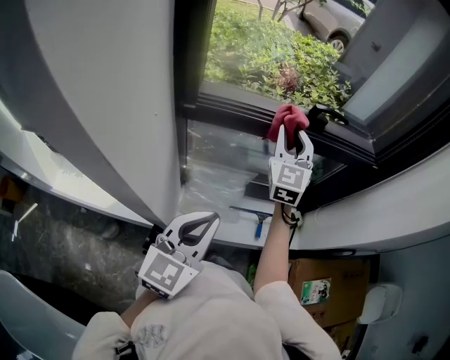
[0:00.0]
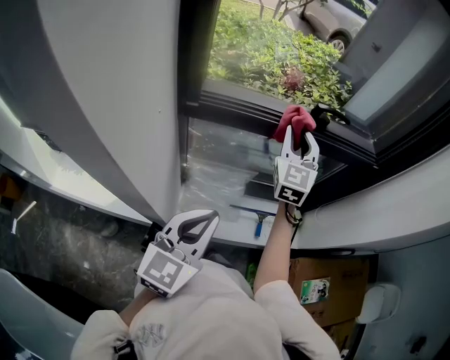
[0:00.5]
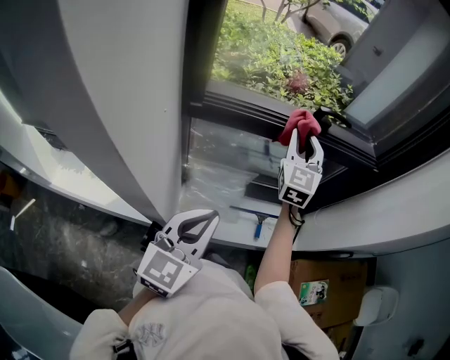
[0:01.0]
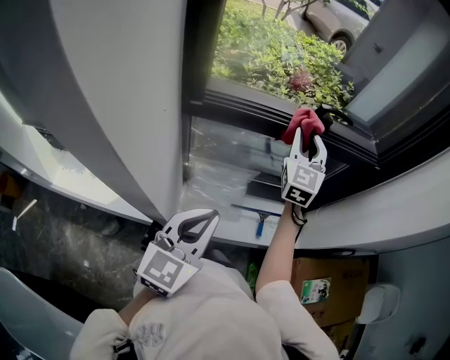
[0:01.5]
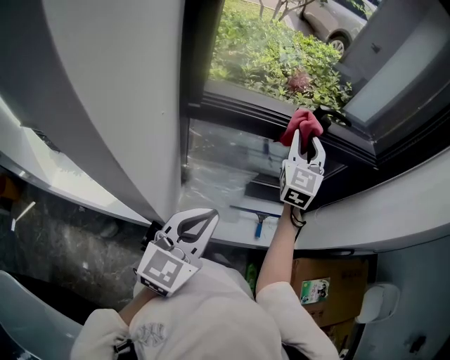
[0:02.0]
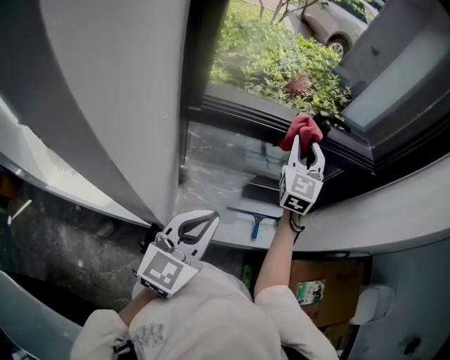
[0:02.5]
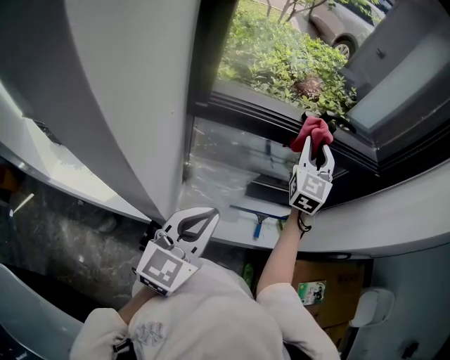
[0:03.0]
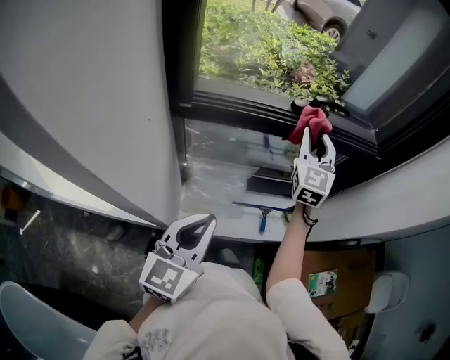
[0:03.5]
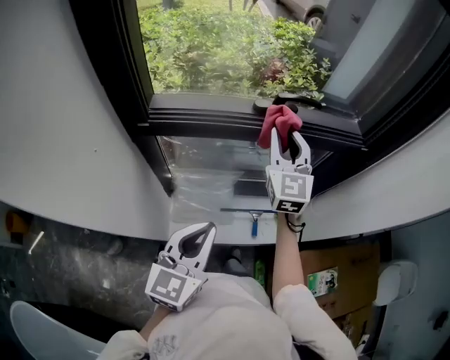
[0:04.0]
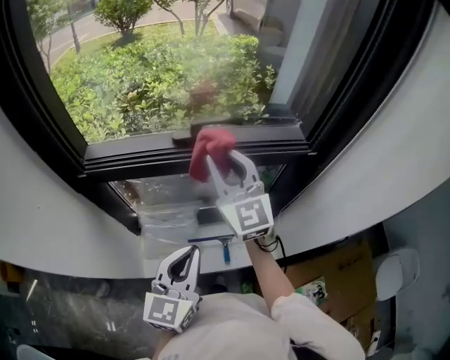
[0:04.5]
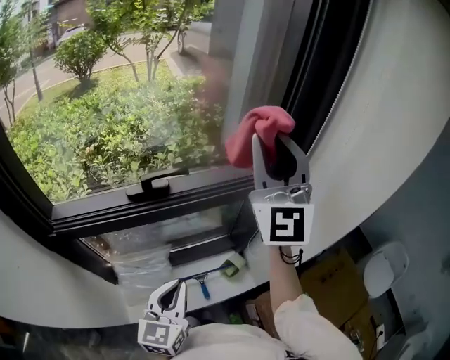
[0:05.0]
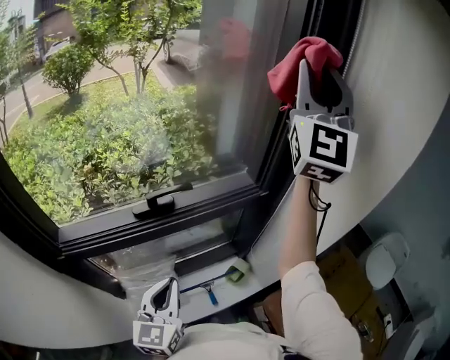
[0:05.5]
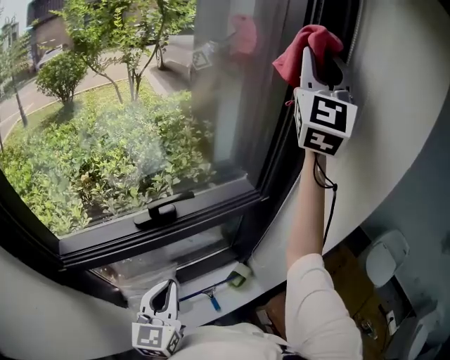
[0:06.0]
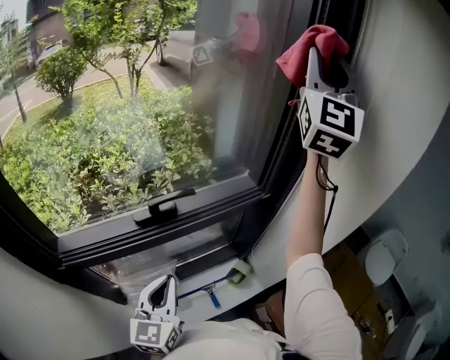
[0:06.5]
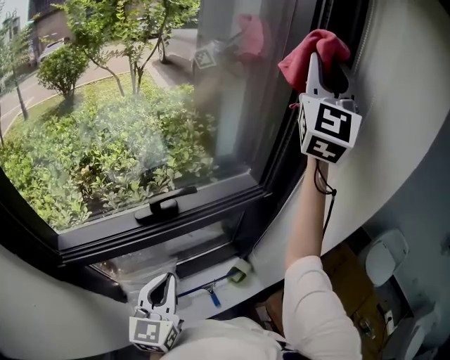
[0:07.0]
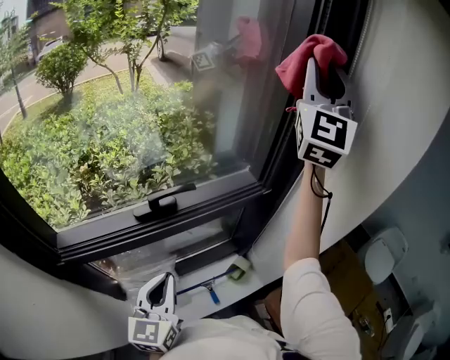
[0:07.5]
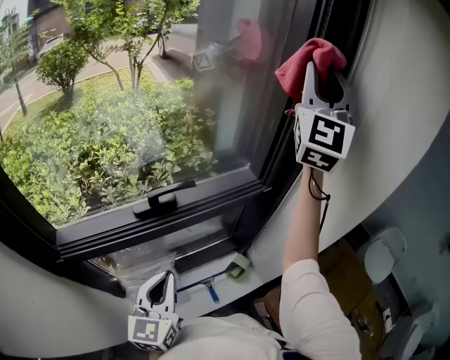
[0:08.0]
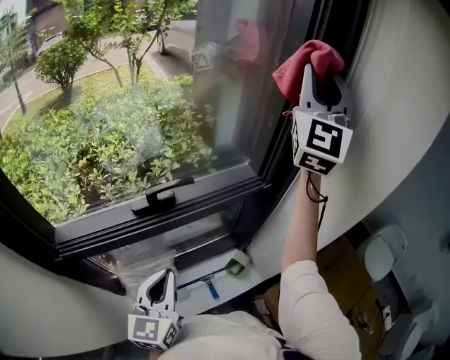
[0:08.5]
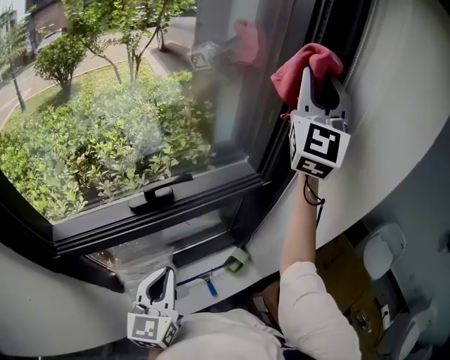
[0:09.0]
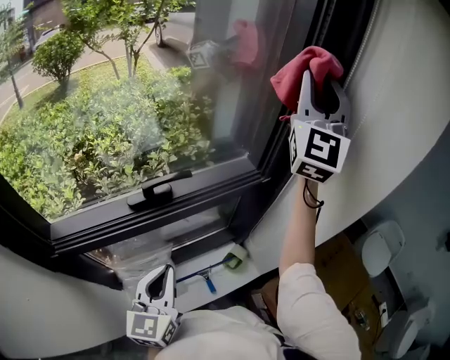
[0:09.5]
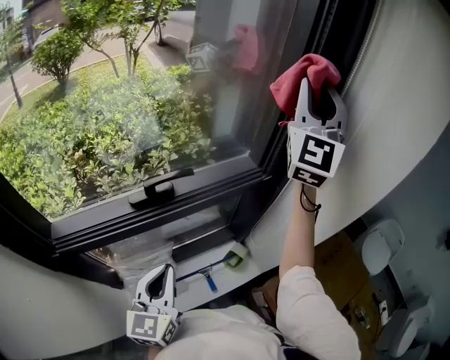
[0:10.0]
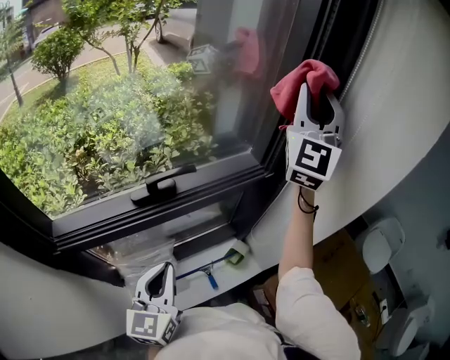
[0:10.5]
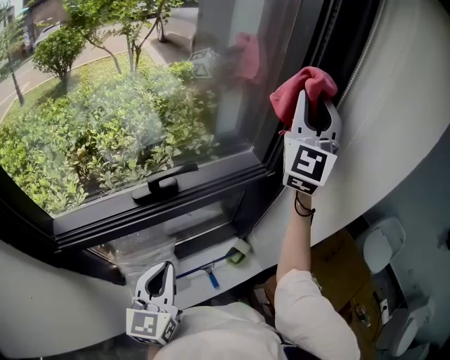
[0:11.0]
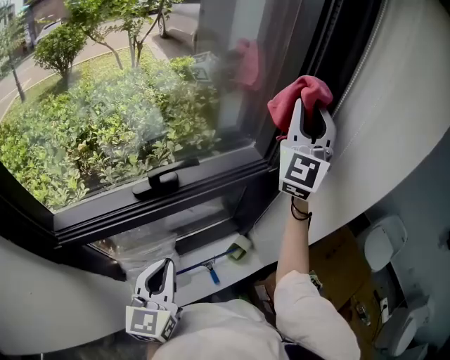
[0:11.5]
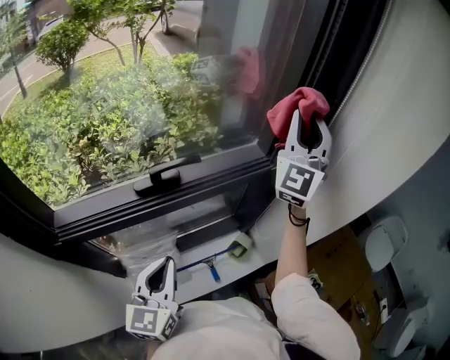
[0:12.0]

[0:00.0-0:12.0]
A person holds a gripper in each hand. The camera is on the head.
0:00.0 to 0:02.0: The grippers make only small movements.
0:02.0 to 0:04.0: The left gripper is displaced to the right by some 5 cm.
0:04.0 to 0:06.0: The left gripper shifts by about 15 cm. Meanwhile the right gripper heads upward, covering approximately 40 cm, and angles its fingers upward, by approximately 40 degrees.
0:06.0 to 0:08.0: The right gripper is displaced downward by roughly 5 cm.
0:08.0 to 0:10.0: The right gripper heads downward, covering some 5 cm.
0:10.0 to 0:12.0: The right gripper shifts approximately 10 cm downward.

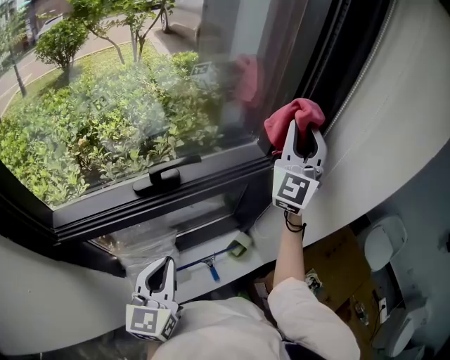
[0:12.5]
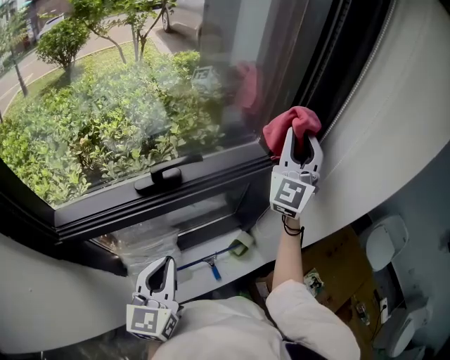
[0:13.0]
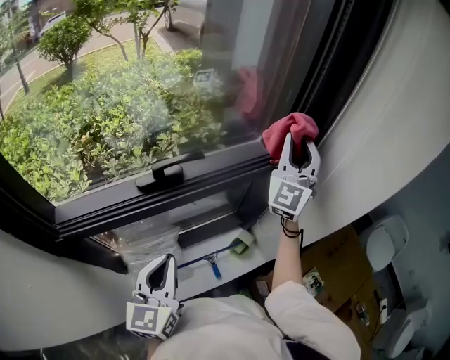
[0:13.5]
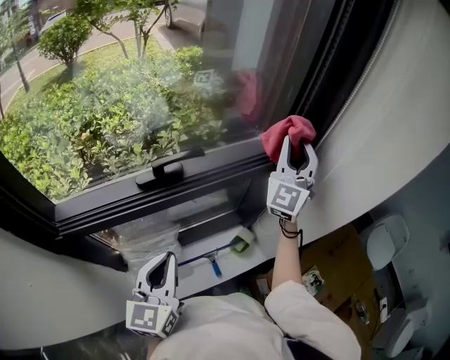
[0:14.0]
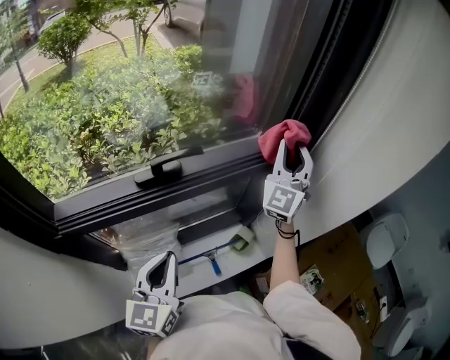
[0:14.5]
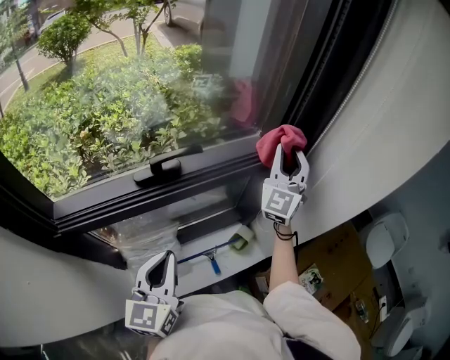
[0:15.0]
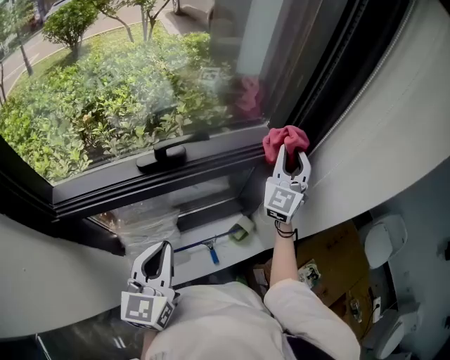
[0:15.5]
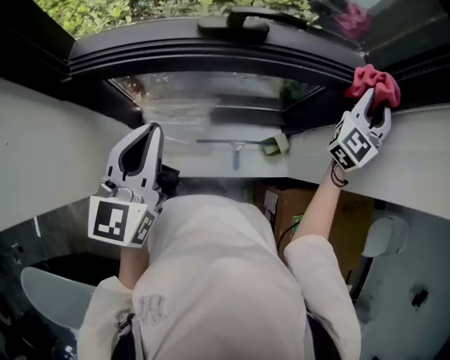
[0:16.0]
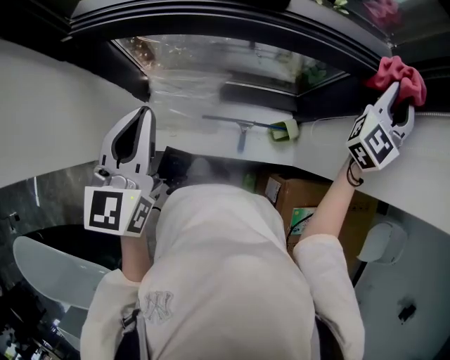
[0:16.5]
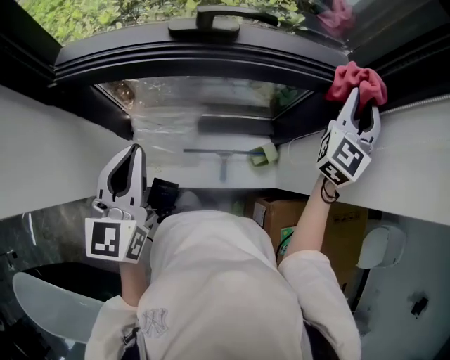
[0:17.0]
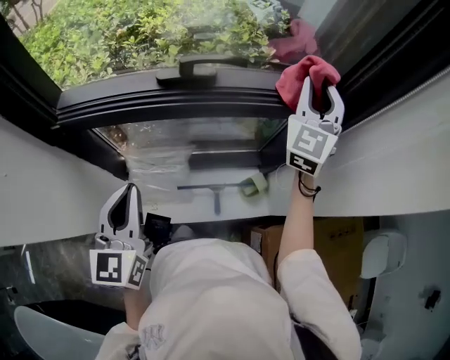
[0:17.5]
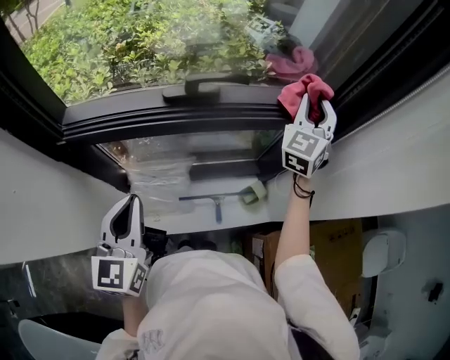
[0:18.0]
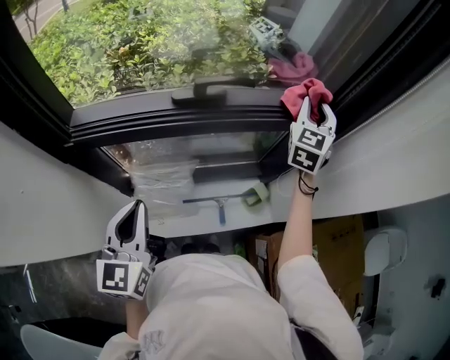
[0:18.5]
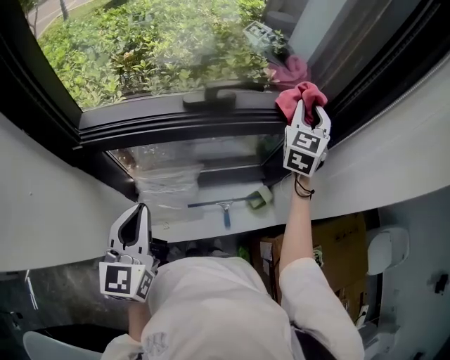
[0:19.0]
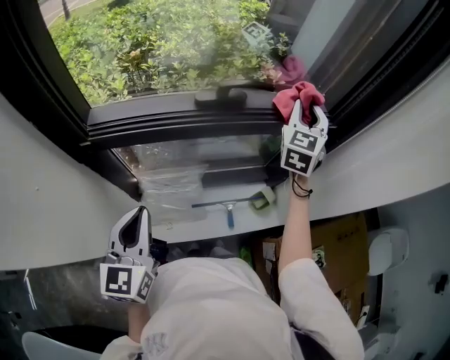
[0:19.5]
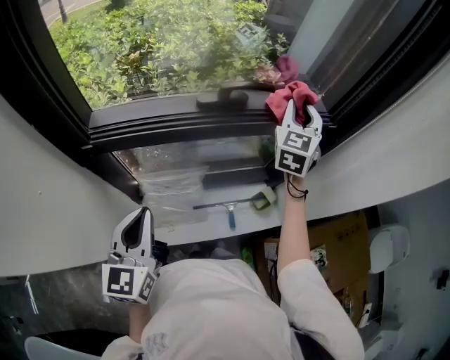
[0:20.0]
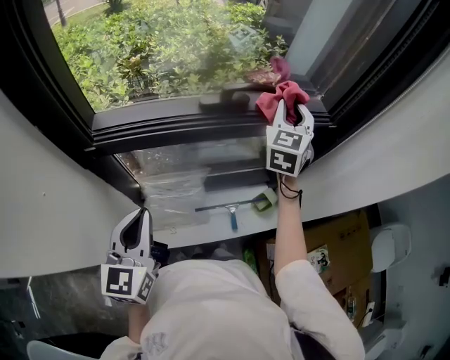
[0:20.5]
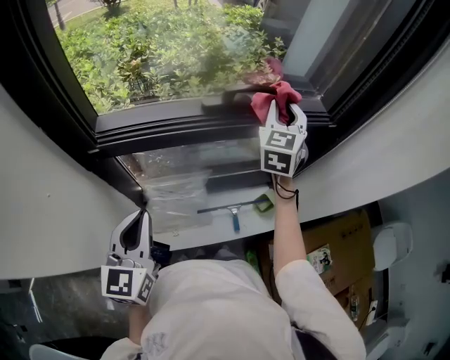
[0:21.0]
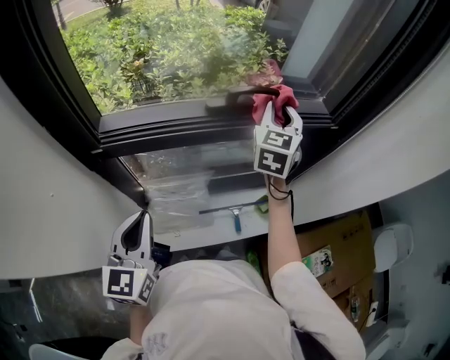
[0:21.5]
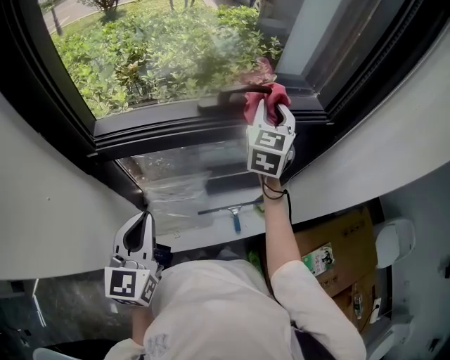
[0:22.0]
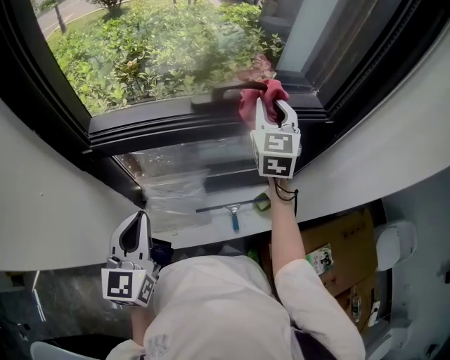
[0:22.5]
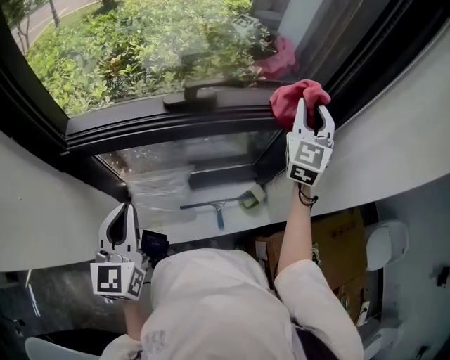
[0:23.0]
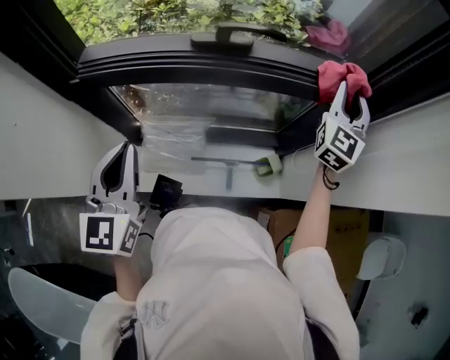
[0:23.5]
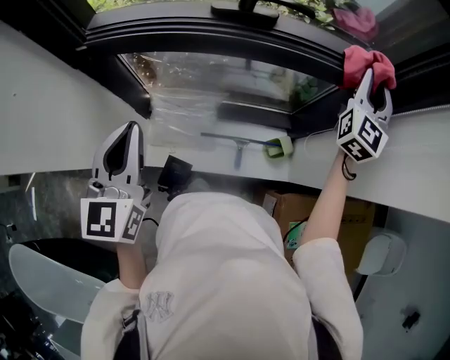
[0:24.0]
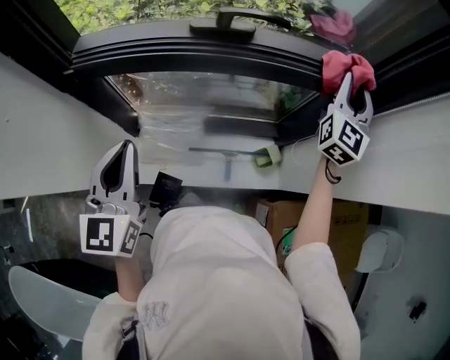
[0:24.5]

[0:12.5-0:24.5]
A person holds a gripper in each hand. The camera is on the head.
0:12.5 to 0:14.5: The right gripper moves downward, roughly 10 cm.
0:14.5 to 0:16.5: The left gripper travels to the left and backward by about 10 cm, and rotates approximately 30 degrees, while the right gripper moves downward, roughly 10 cm.
0:16.5 to 0:18.5: The right gripper travels to the left by about 5 cm.
0:18.5 to 0:20.5: The left gripper moves to the left, about 5 cm. The right gripper goes about 10 cm to the left.
0:20.5 to 0:22.5: The grippers make only small movements.
0:22.5 to 0:24.5: The right gripper travels to the right by about 20 cm.

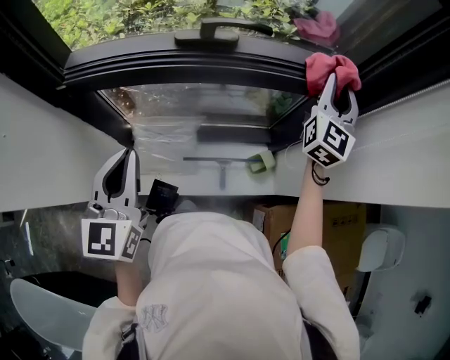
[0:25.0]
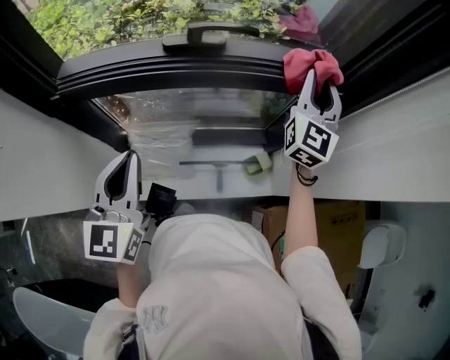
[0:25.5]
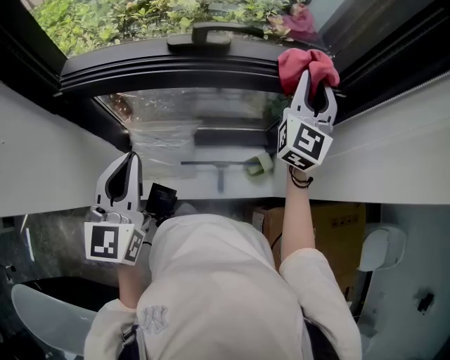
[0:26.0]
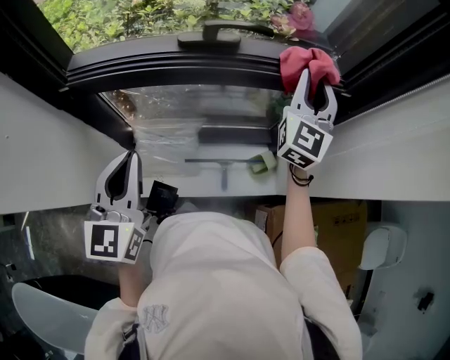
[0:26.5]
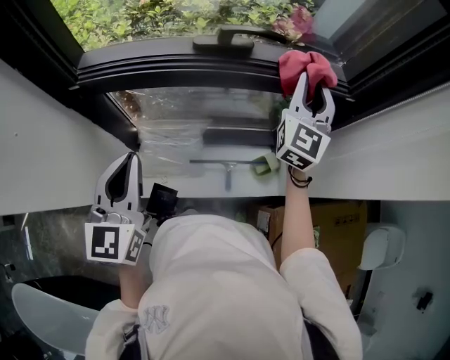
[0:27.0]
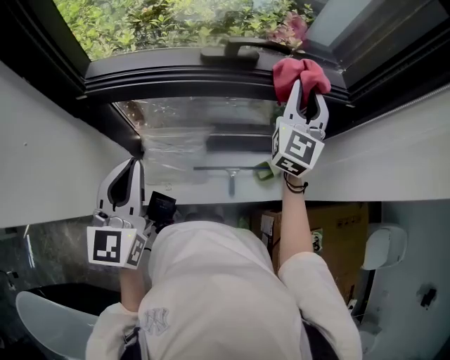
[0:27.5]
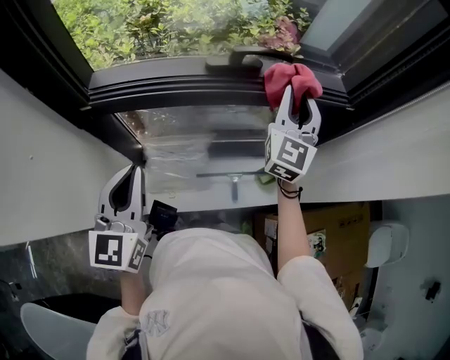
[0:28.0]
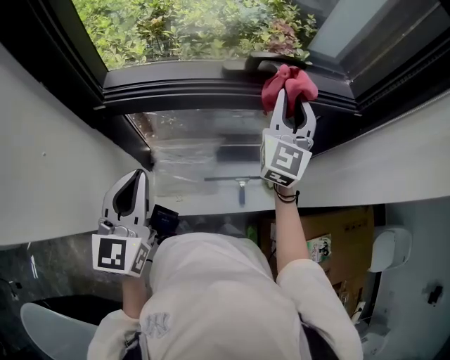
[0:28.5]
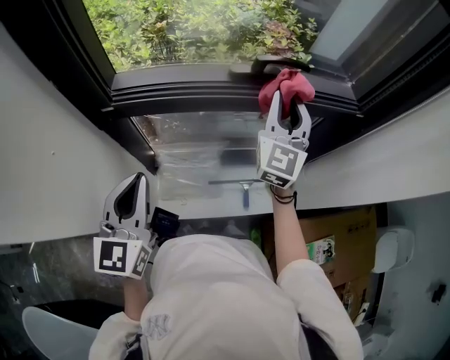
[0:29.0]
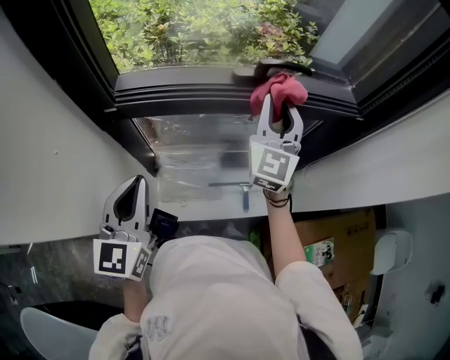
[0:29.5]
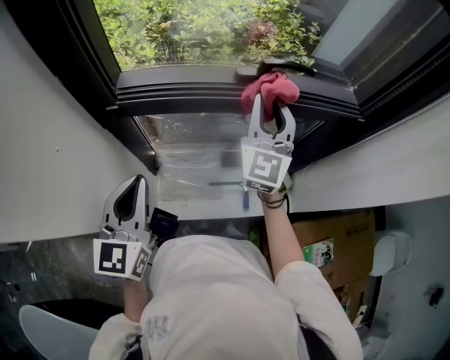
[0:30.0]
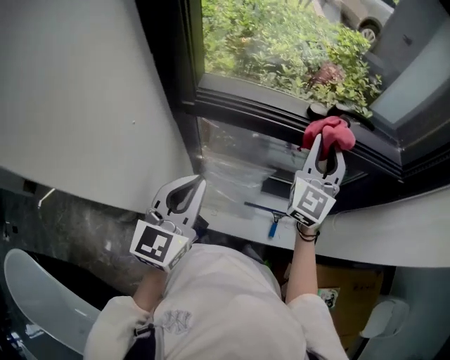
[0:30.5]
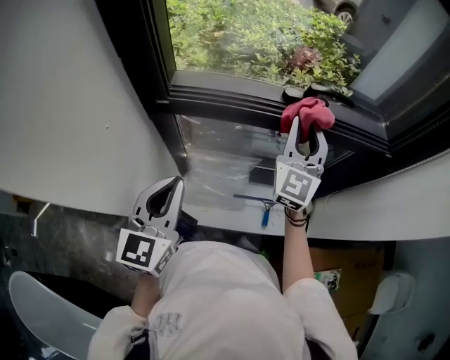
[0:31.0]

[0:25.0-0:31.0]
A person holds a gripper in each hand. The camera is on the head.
0:25.0 to 0:27.0: The right gripper moves to the left, roughly 10 cm.
0:27.0 to 0:29.0: The right gripper travels to the left by roughly 15 cm; the left gripper moves to the left, roughly 10 cm.
0:29.0 to 0:31.0: The right gripper moves to the left, about 5 cm.
